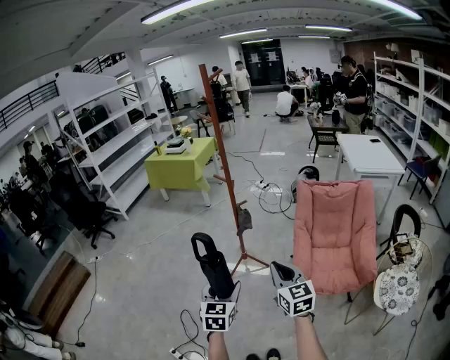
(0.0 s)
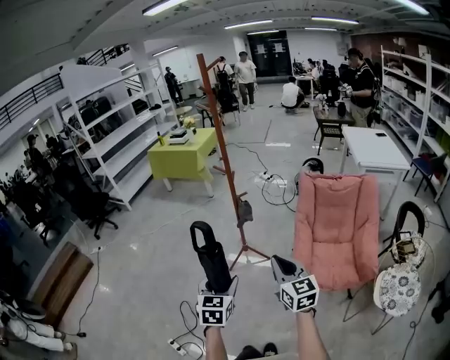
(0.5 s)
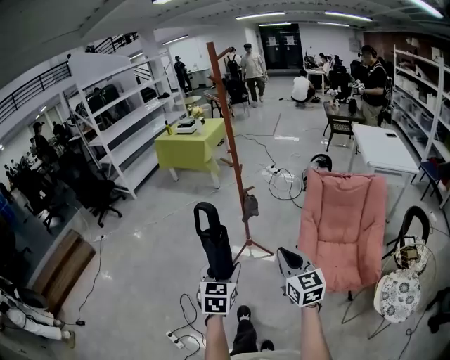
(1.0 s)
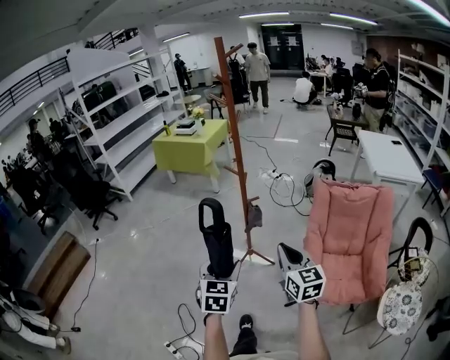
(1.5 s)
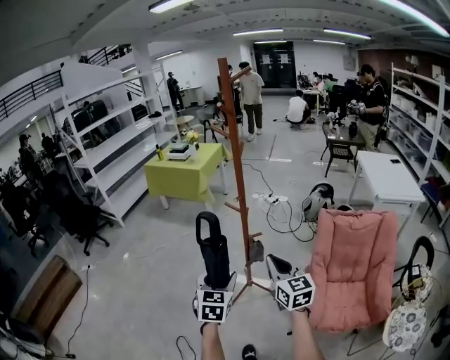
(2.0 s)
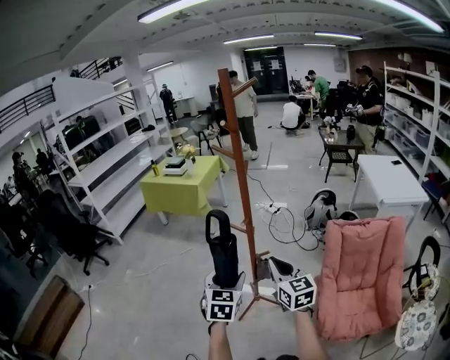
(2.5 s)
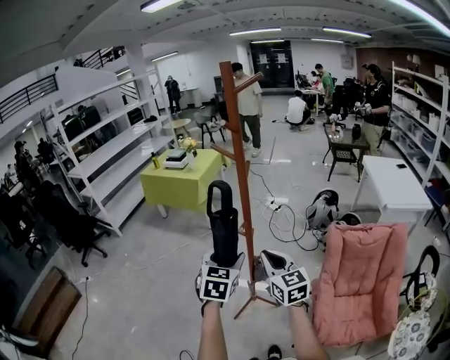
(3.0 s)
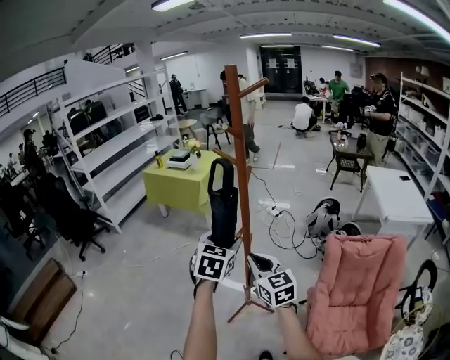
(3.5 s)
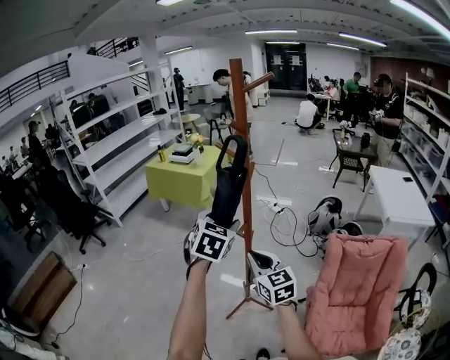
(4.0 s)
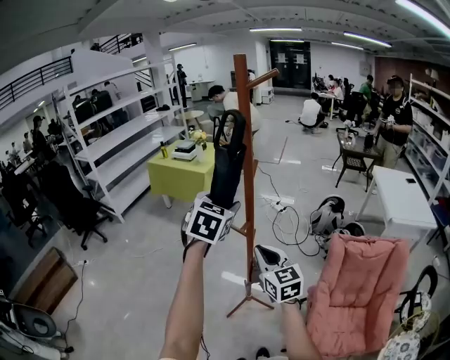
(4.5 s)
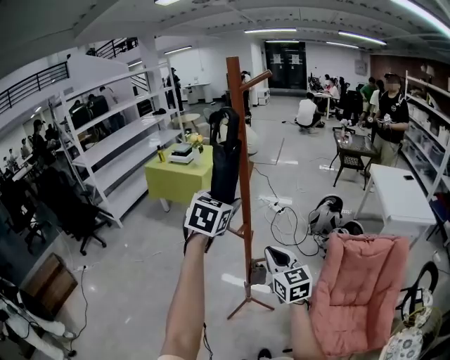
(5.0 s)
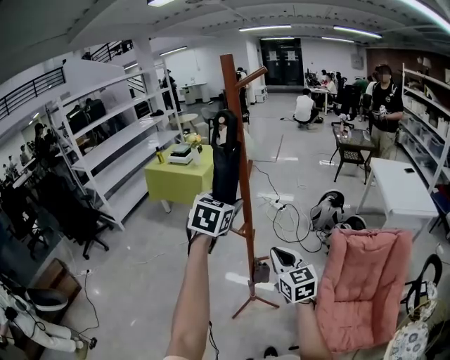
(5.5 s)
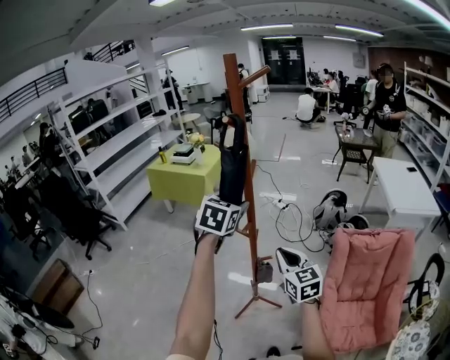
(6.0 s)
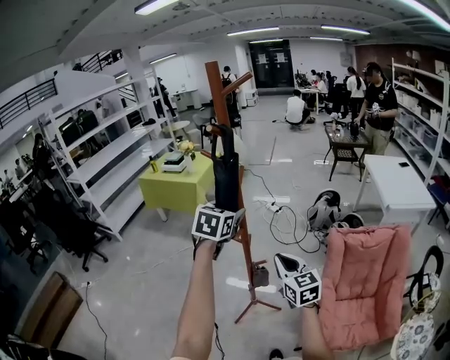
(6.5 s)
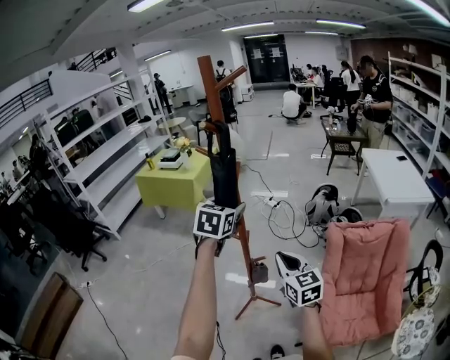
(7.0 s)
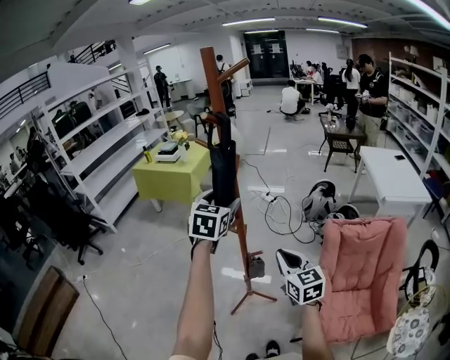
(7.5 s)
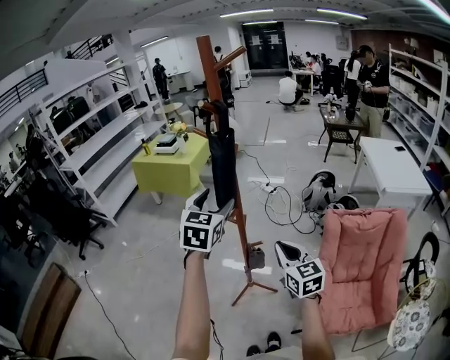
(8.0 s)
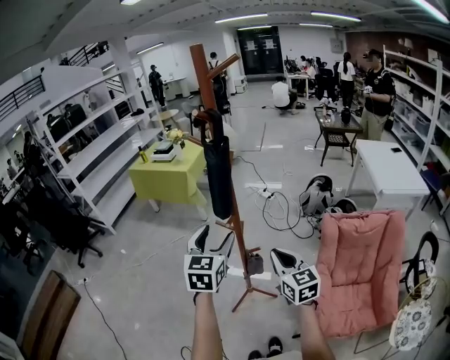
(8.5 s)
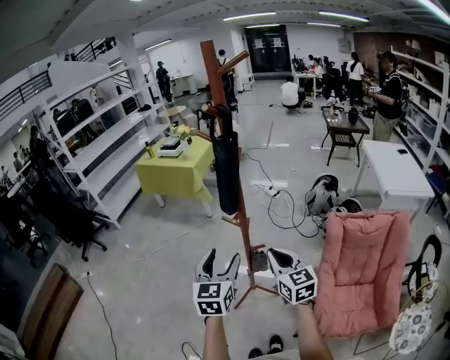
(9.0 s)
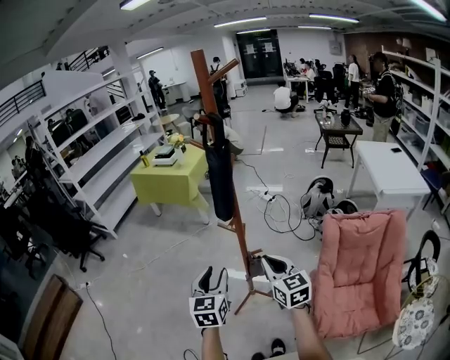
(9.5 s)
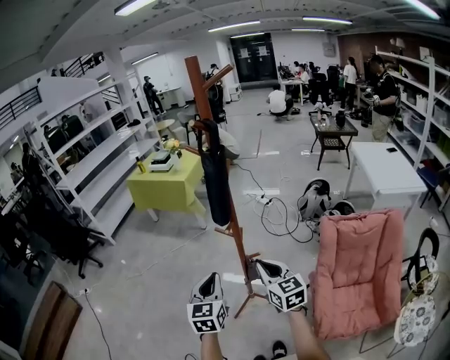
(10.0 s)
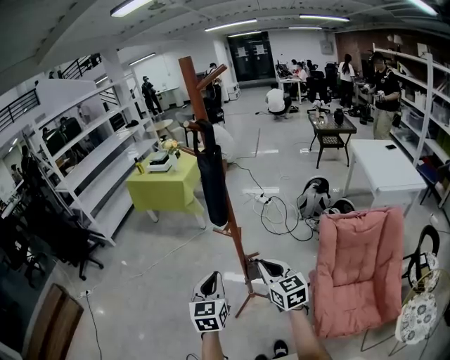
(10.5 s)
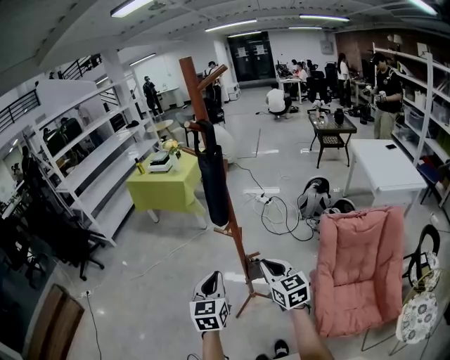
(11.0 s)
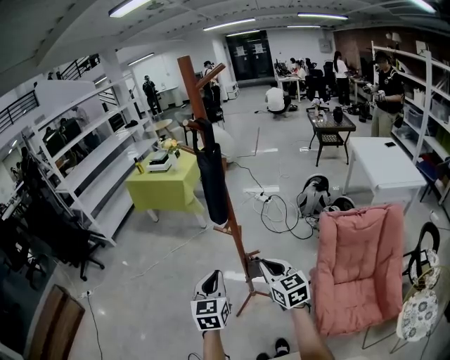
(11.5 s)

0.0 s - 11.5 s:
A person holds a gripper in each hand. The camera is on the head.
0.0 s - 2.0 s: The two grippers go approximately 25 cm forward.
2.0 s - 4.0 s: The right gripper is displaced forward by some 15 cm. Meanwhile the left gripper heads forward and upward, covering roughly 25 cm.
4.0 s - 6.0 s: The left gripper heads forward, covering roughly 5 cm; the right gripper travels to the right by some 10 cm.
6.0 s - 7.5 s: The grippers stay close to where they were, moving slightly.
7.5 s - 9.5 s: The right gripper shifts about 5 cm to the left, while the left gripper is displaced backward, downward and to the left by roughly 25 cm, and closes.
9.5 s - 11.5 s: The left gripper closes its fingers.

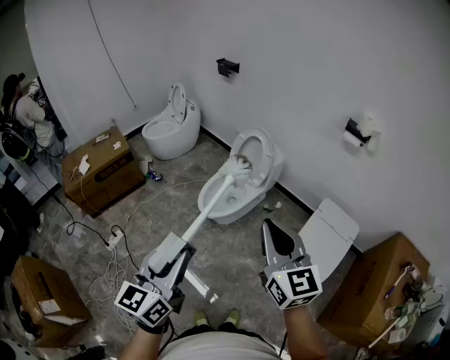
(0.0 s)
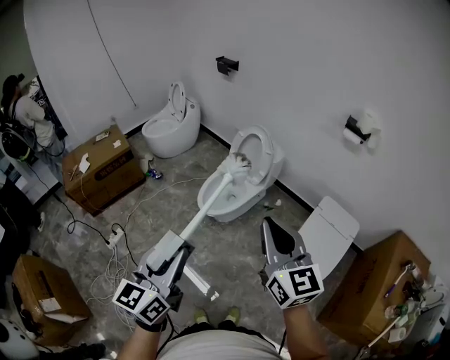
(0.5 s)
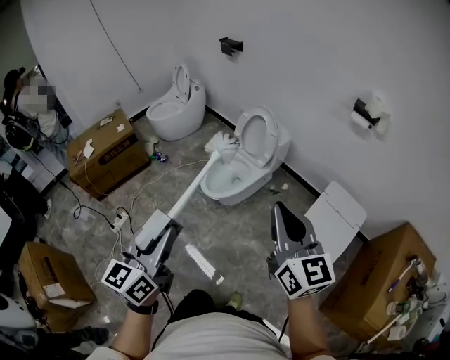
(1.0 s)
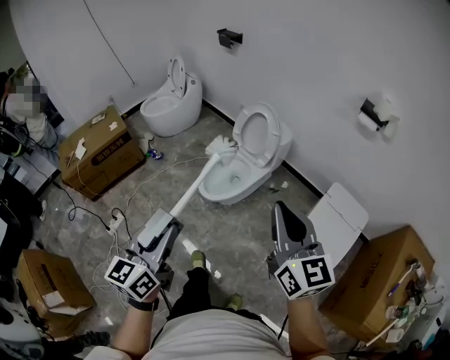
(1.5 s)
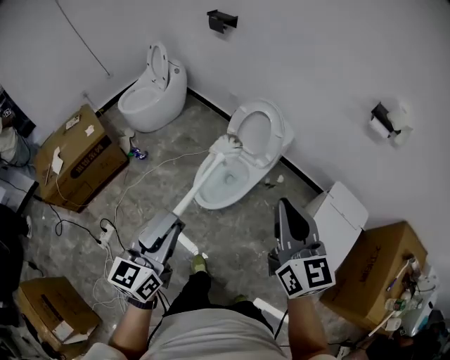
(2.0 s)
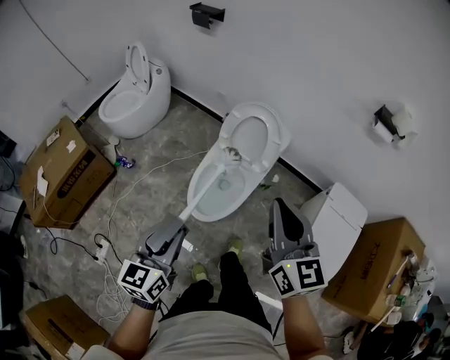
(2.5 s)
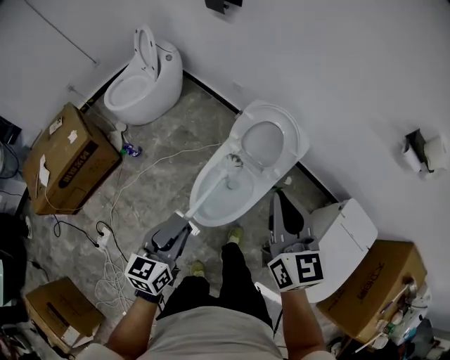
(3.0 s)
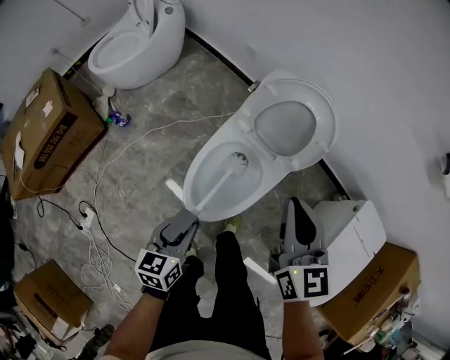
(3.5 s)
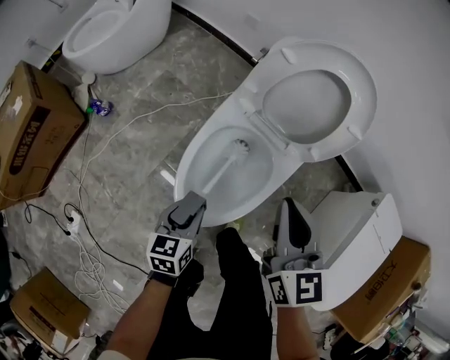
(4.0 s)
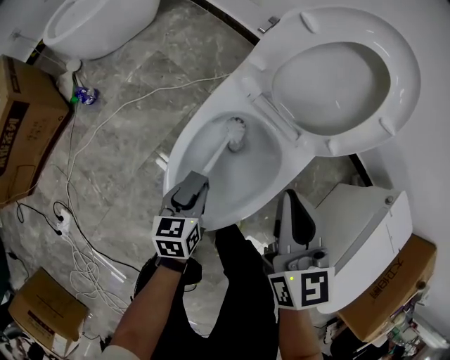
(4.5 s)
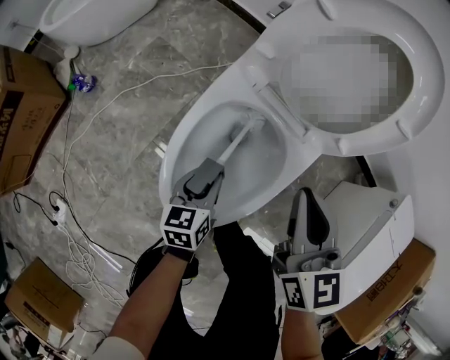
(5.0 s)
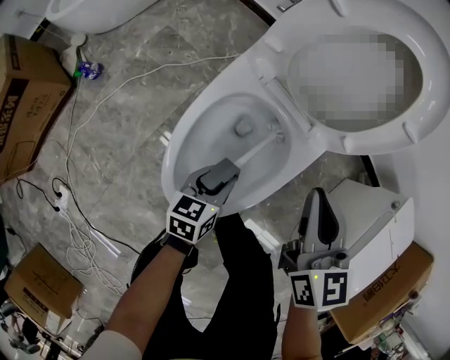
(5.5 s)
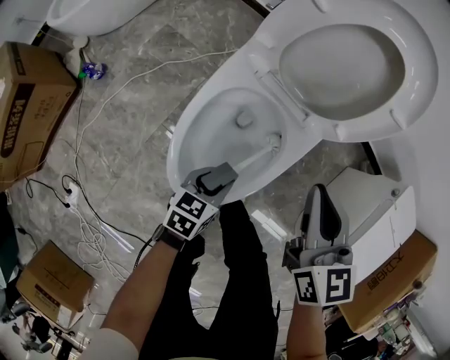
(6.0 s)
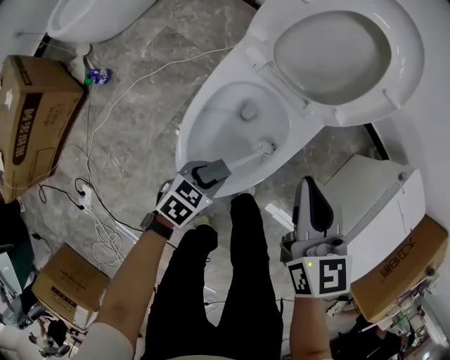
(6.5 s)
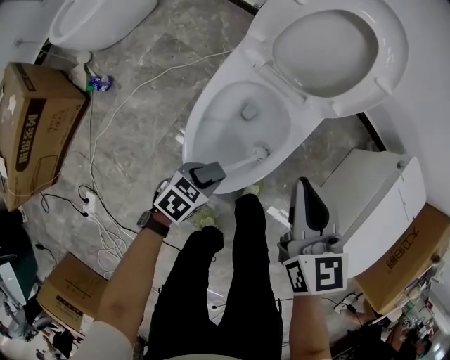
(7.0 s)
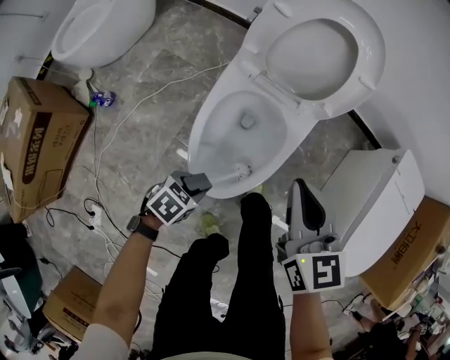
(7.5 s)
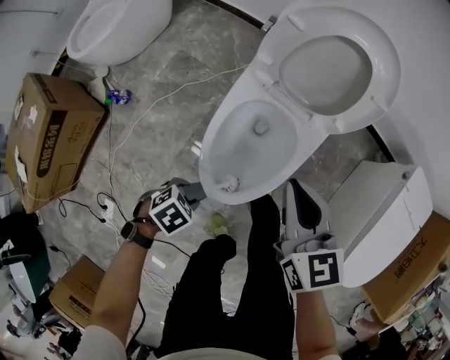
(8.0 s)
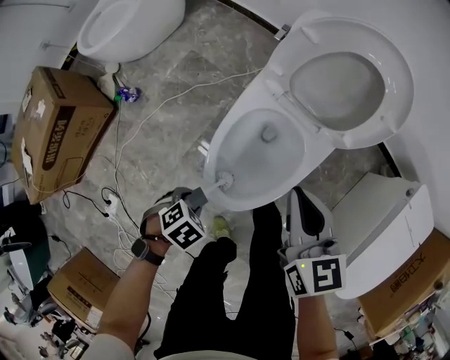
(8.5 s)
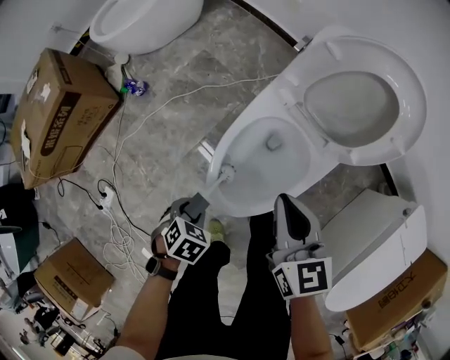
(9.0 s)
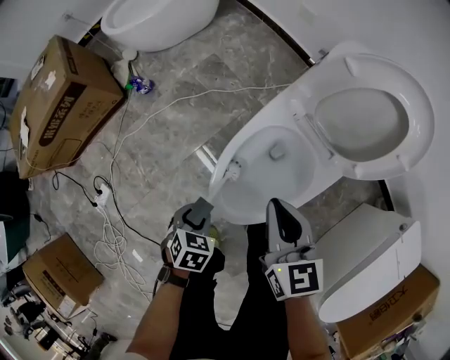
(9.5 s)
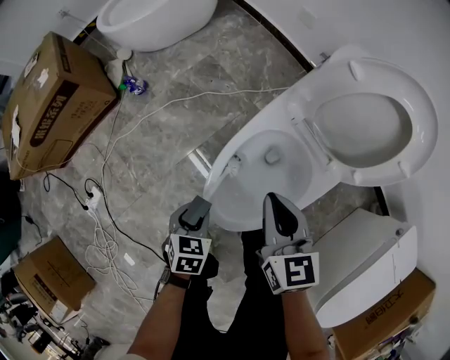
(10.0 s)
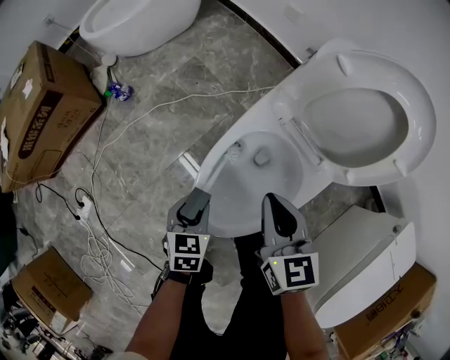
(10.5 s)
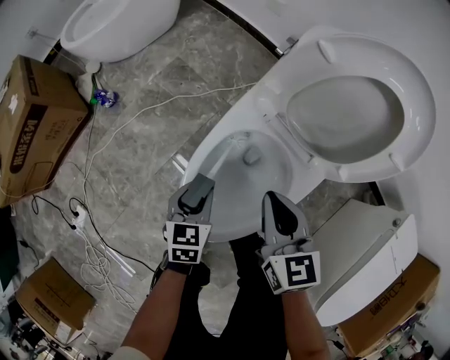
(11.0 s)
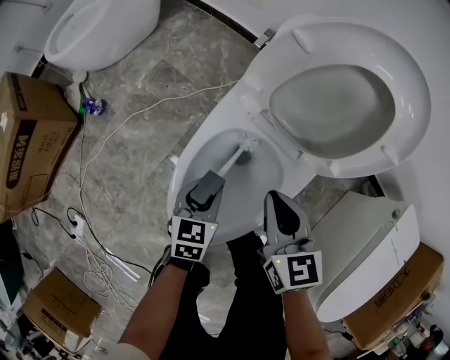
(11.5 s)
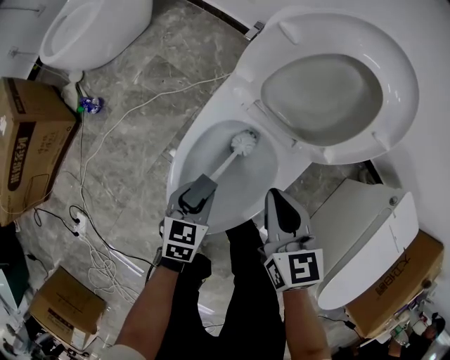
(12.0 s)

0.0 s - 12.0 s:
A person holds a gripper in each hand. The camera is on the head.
0.0 s - 2.0 s: The right gripper shifts approximately 25 cm forward; the left gripper moves forward and downward, approximately 30 cm.
2.0 s - 4.0 s: The two grippers go about 60 cm downward and forward. The left gripper tilts its fingers roughly 30 degrees downward.
4.0 s - 6.0 s: The right gripper heads downward and to the right, covering about 10 cm; the left gripper shifts roughly 15 cm downward and to the right, and rotates some 20 degrees.
6.0 s - 8.0 s: The right gripper shifts by approximately 10 cm, while the left gripper moves about 20 cm, and swivels approximately 50 degrees.
8.0 s - 10.0 s: The left gripper rotates about 60 degrees; the right gripper heads downward, covering about 10 cm.
10.0 s - 12.0 s: The left gripper shifts about 15 cm to the right and forward, and rotates about 20 degrees; the right gripper travels to the right by some 10 cm.

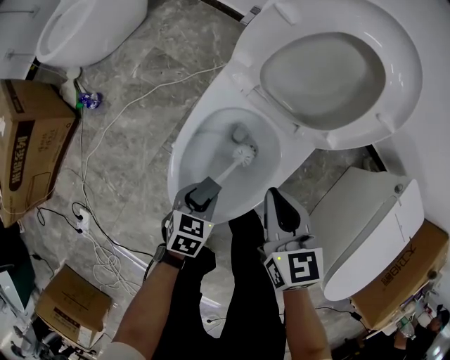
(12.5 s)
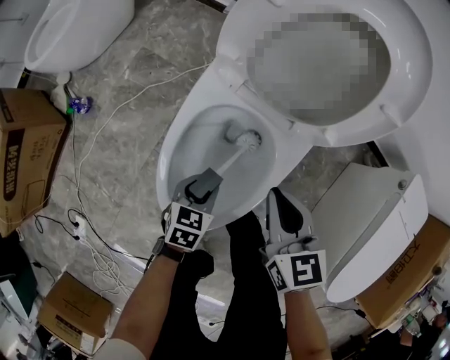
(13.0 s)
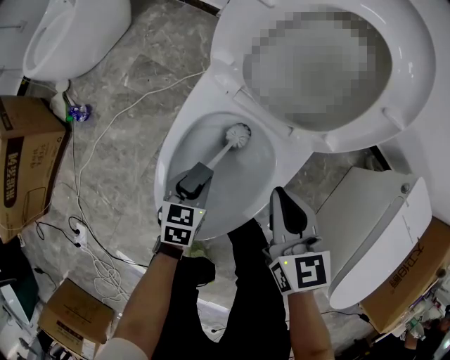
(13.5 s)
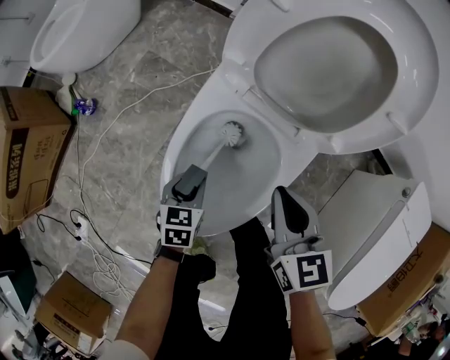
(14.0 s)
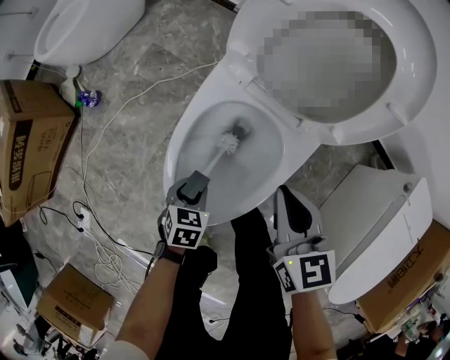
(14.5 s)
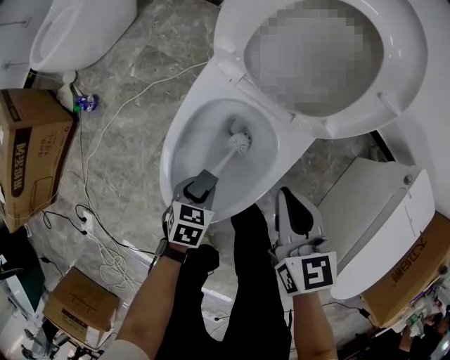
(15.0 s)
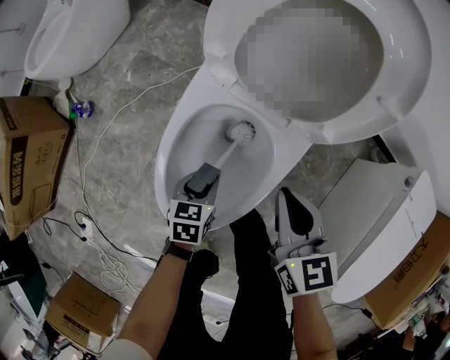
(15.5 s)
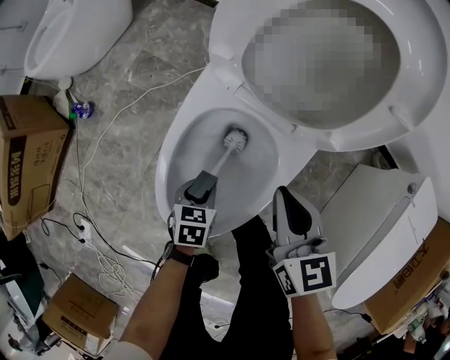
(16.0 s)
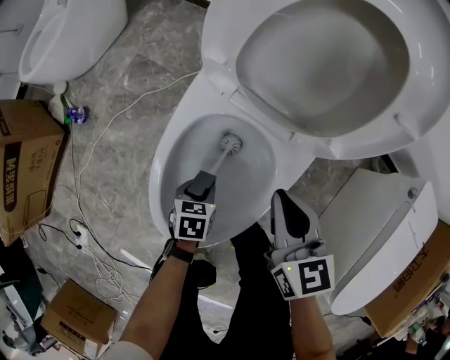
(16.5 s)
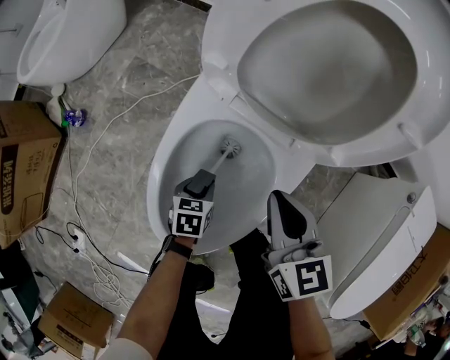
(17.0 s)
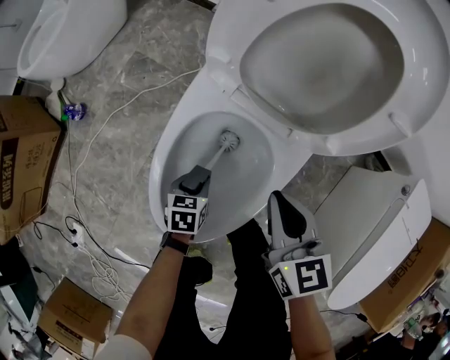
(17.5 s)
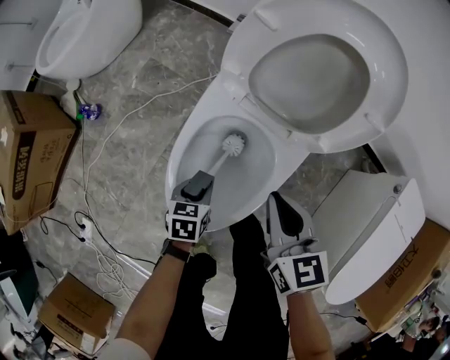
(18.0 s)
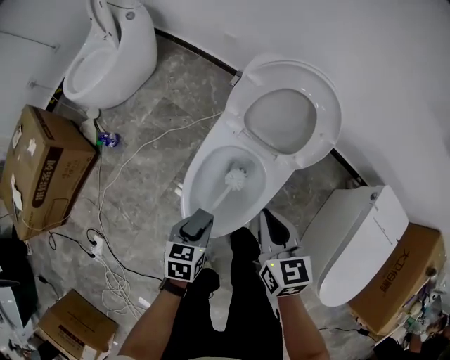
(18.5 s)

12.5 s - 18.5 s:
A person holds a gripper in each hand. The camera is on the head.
14.5 s - 16.5 s: The left gripper goes approximately 10 cm downward and forward. Meanwhile the right gripper moves roughly 5 cm.
16.5 s - 18.5 s: The right gripper travels upward by approximately 20 cm. The left gripper is displaced upward by roughly 25 cm.
